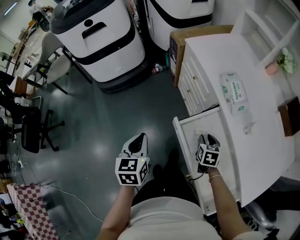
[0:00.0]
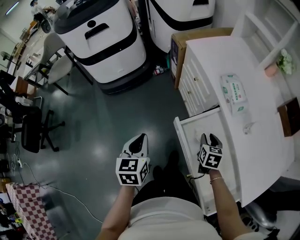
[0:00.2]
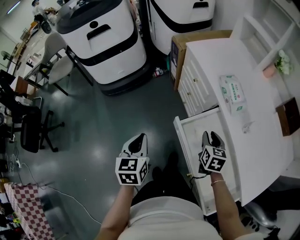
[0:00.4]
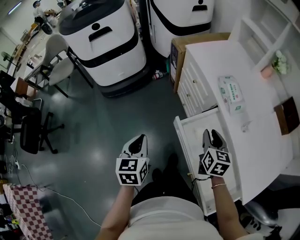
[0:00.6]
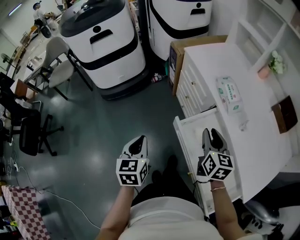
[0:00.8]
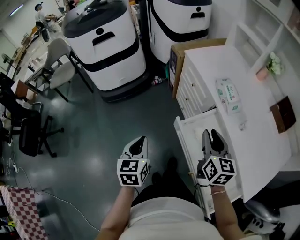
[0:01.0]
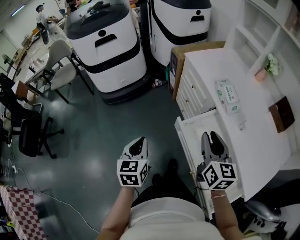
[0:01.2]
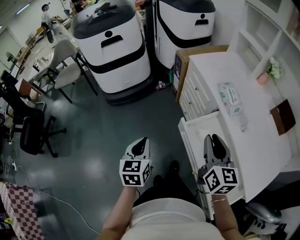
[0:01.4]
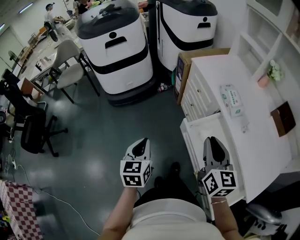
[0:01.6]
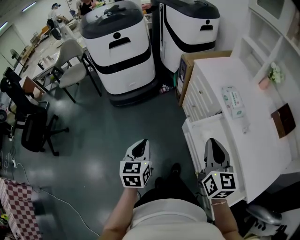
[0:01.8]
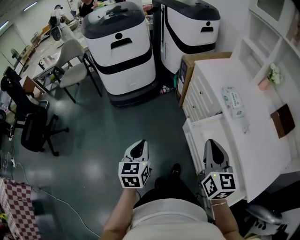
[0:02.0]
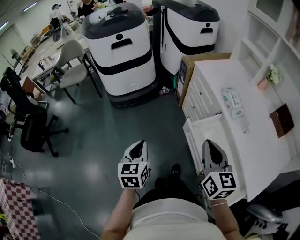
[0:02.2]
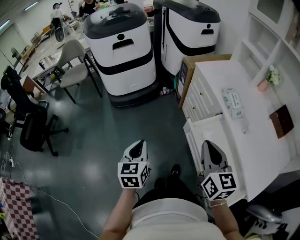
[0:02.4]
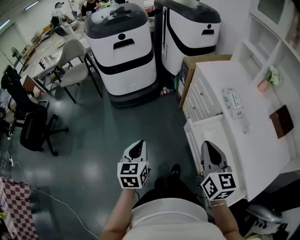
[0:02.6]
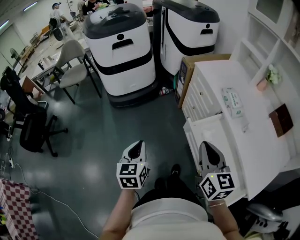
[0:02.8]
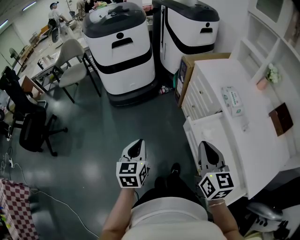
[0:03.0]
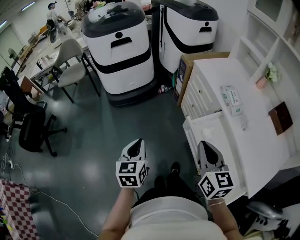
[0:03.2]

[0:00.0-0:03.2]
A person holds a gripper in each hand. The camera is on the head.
0.0 to 1.6 s: The left gripper shifts some 5 cm backward. The right gripper moves upward, approximately 30 cm, and tips its fingers upward by some 40 degrees.
1.6 to 3.2 s: Both grippers move to the left, about 5 cm.

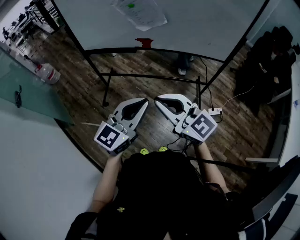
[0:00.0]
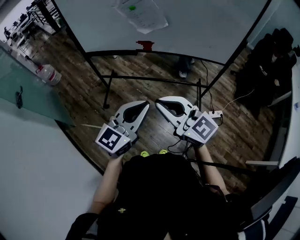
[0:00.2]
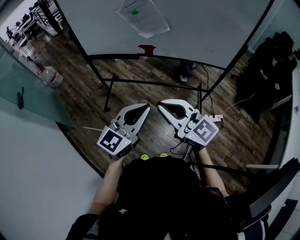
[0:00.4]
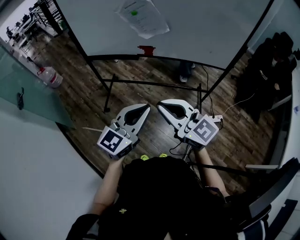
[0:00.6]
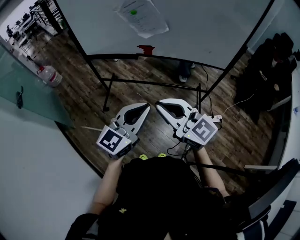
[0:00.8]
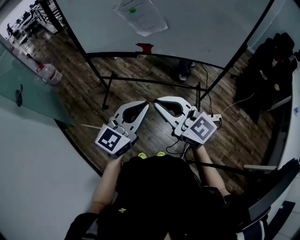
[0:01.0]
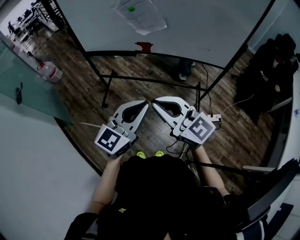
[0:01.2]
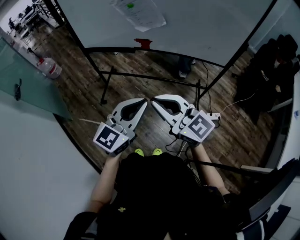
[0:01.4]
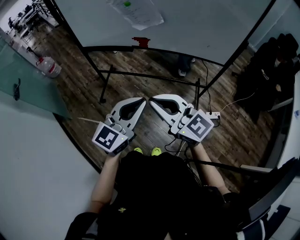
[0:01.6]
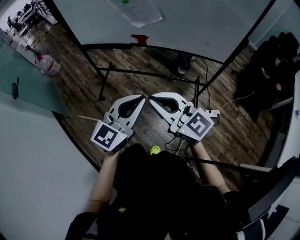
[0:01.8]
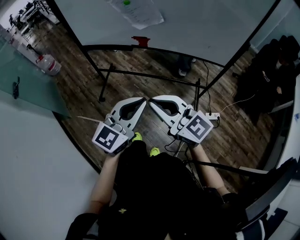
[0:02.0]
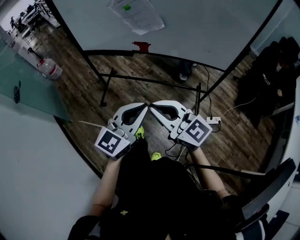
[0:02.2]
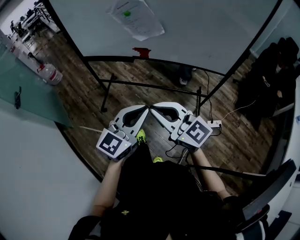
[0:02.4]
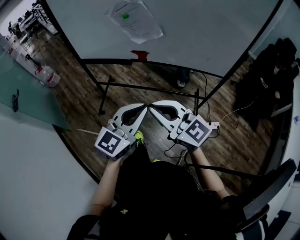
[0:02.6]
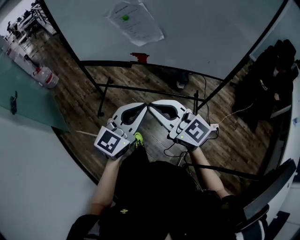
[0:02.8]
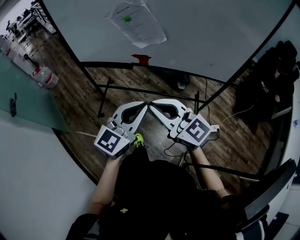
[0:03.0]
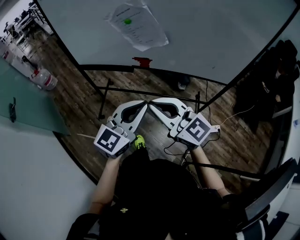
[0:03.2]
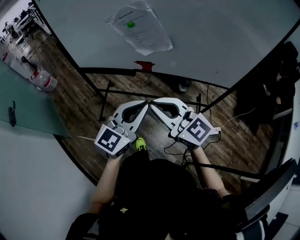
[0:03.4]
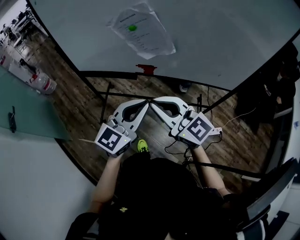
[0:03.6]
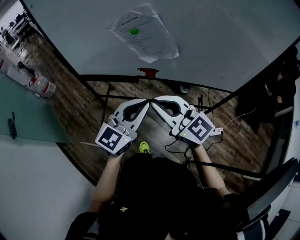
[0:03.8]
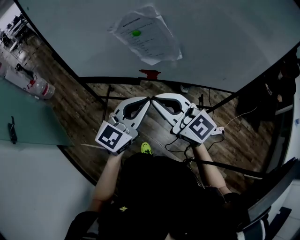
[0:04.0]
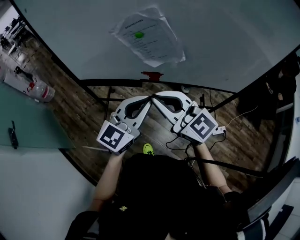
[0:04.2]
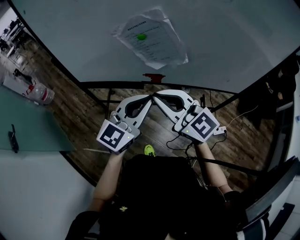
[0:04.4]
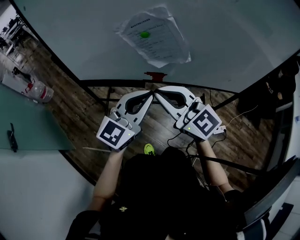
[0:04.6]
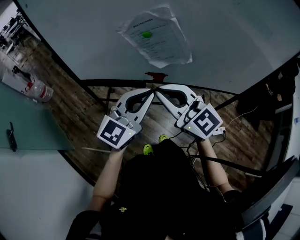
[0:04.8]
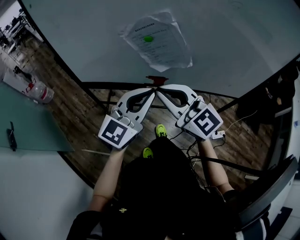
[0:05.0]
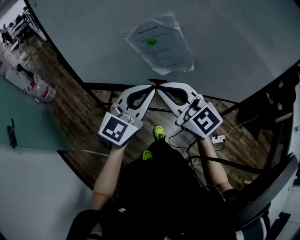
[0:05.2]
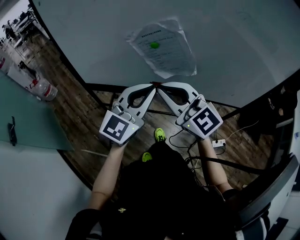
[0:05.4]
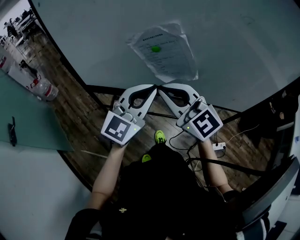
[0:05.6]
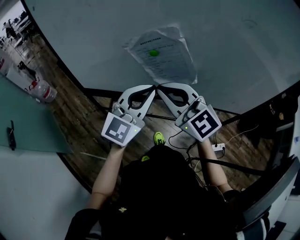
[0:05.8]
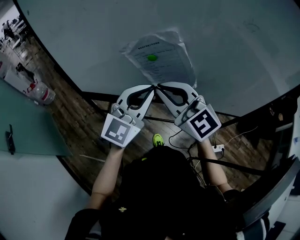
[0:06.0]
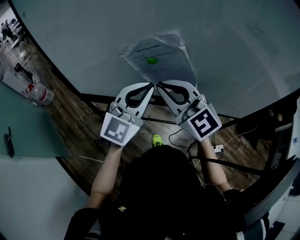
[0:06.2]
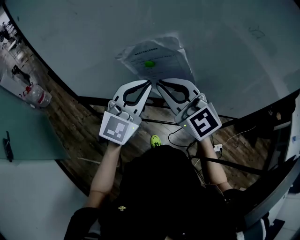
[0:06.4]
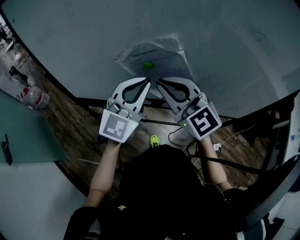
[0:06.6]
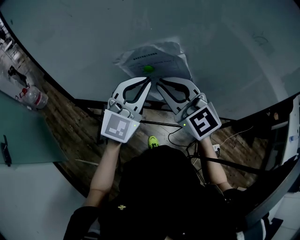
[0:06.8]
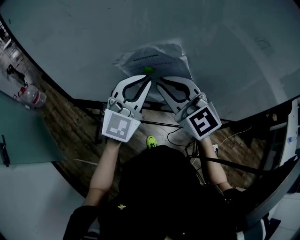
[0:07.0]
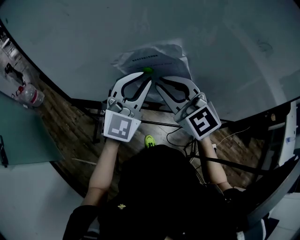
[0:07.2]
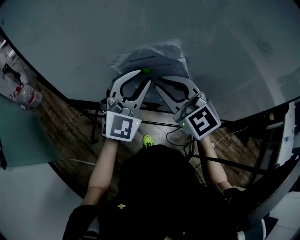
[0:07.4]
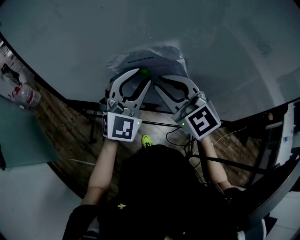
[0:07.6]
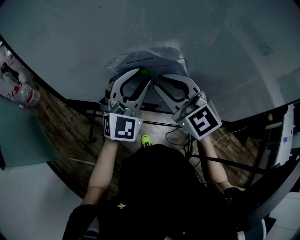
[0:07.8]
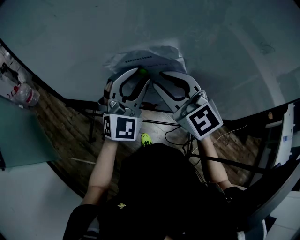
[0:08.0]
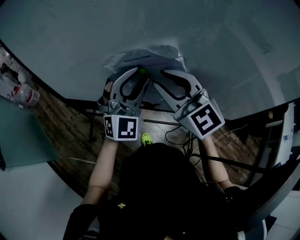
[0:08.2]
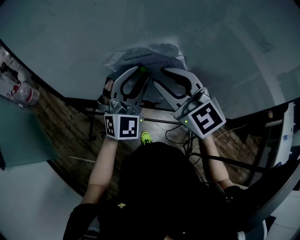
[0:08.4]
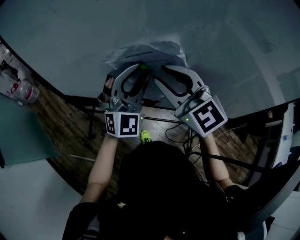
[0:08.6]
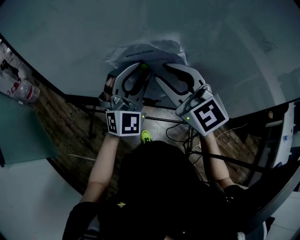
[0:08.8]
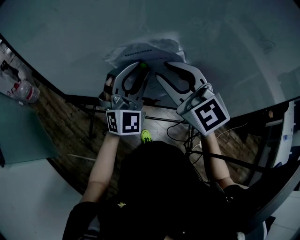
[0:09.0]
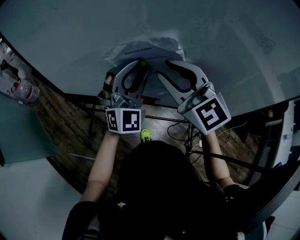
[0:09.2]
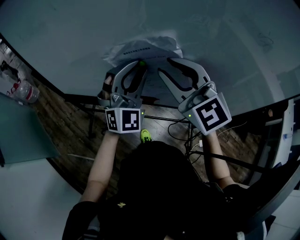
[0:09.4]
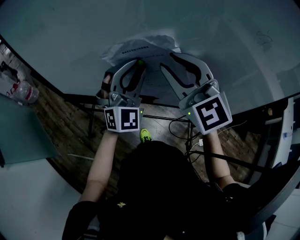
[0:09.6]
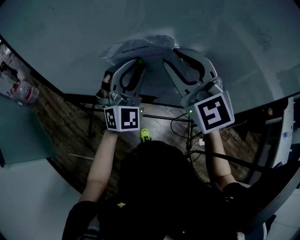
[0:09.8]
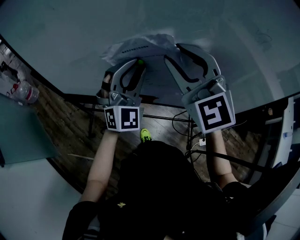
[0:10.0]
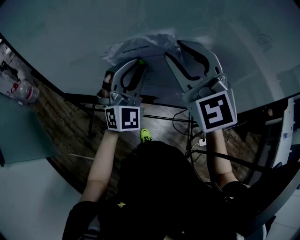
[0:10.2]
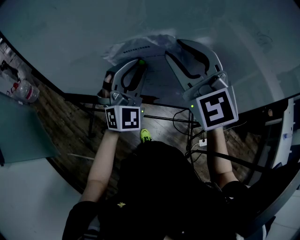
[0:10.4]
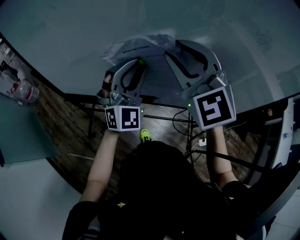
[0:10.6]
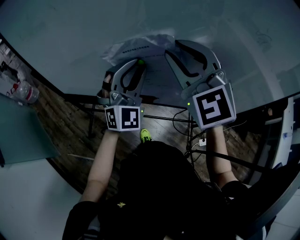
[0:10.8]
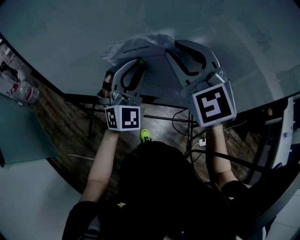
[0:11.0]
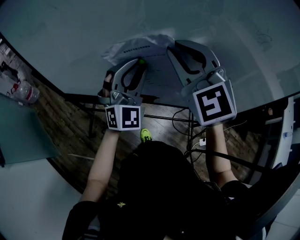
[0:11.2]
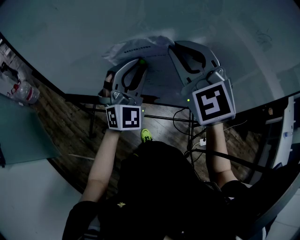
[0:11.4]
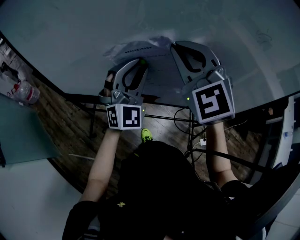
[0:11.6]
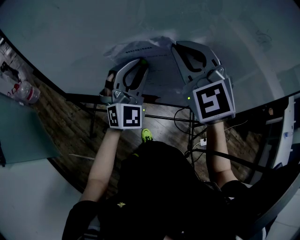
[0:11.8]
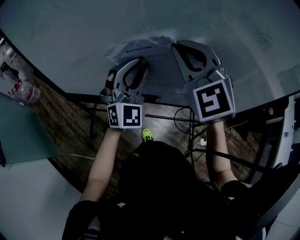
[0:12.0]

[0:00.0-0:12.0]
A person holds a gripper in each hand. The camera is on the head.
0.0 to 1.6 s: The grippers make only small movements.
1.6 to 3.0 s: Both grippers move forward, approximately 10 cm.
3.0 to 4.4 s: The two grippers go about 20 cm forward.
4.4 to 6.0 s: The grippers both shift forward by some 10 cm.
6.0 to 7.6 s: Both grippers move forward, roughly 10 cm. The left gripper swivels some 20 degrees, and opens its fingers.
7.6 to 9.0 s: The grippers make only small movements.
9.0 to 10.4 s: The right gripper shifts roughly 5 cm upward.
10.4 to 12.0 s: The right gripper closes its fingers.

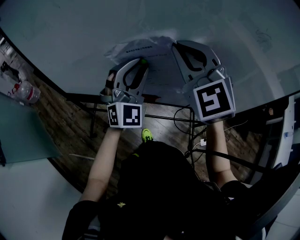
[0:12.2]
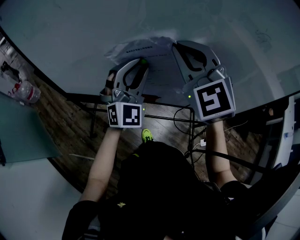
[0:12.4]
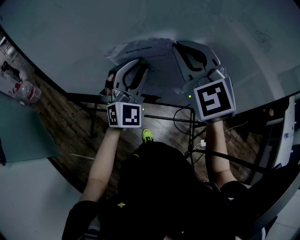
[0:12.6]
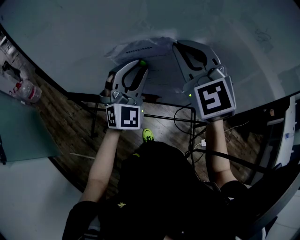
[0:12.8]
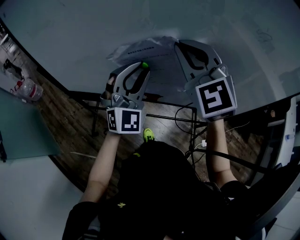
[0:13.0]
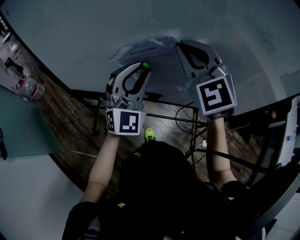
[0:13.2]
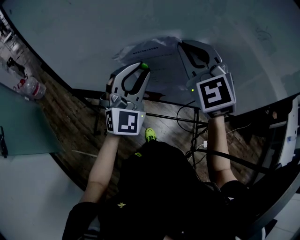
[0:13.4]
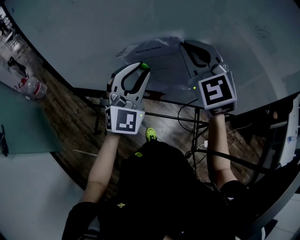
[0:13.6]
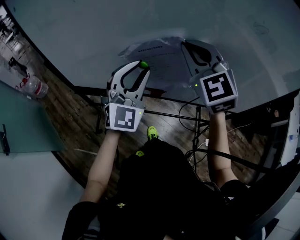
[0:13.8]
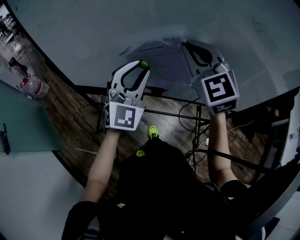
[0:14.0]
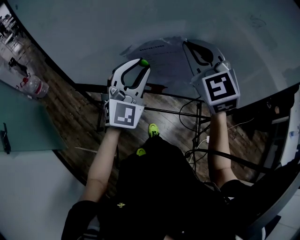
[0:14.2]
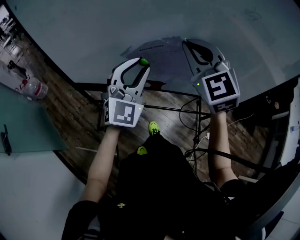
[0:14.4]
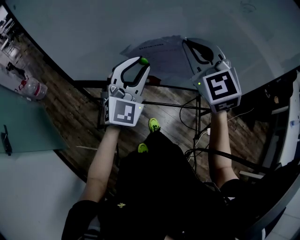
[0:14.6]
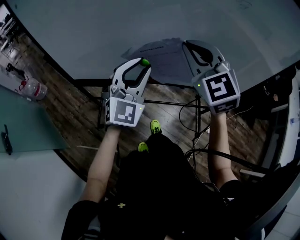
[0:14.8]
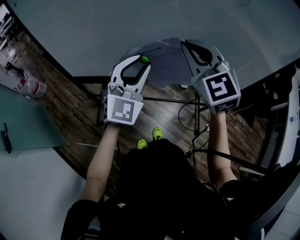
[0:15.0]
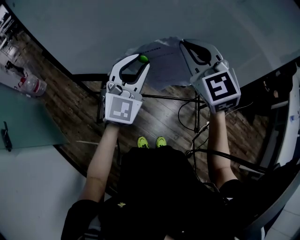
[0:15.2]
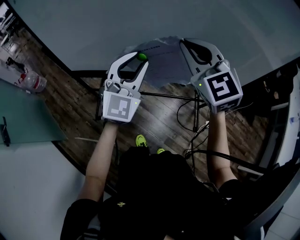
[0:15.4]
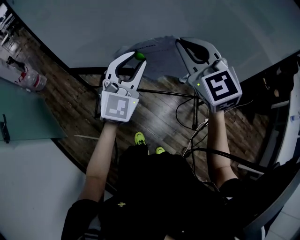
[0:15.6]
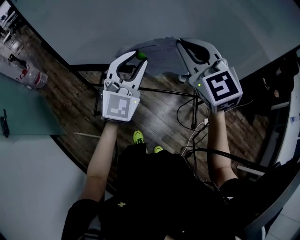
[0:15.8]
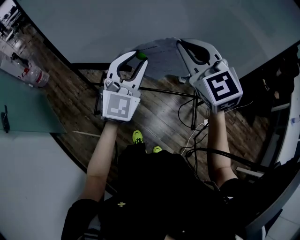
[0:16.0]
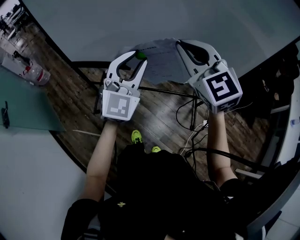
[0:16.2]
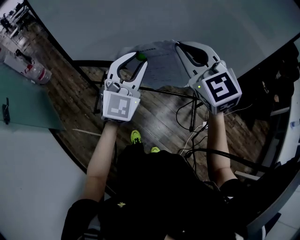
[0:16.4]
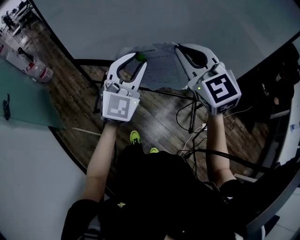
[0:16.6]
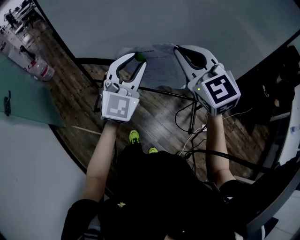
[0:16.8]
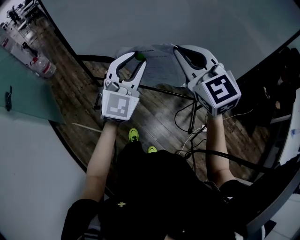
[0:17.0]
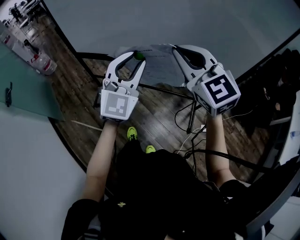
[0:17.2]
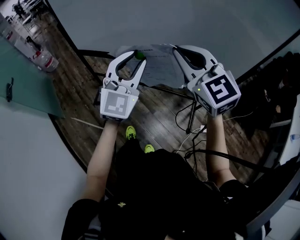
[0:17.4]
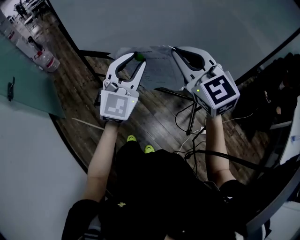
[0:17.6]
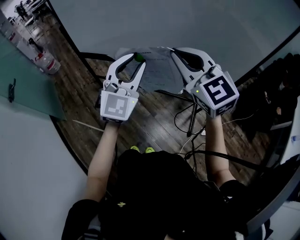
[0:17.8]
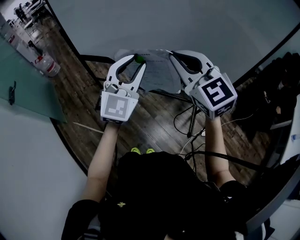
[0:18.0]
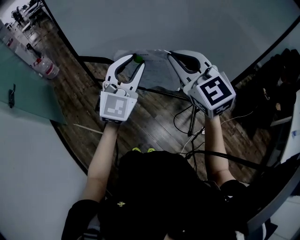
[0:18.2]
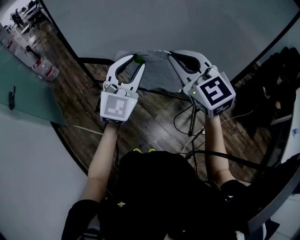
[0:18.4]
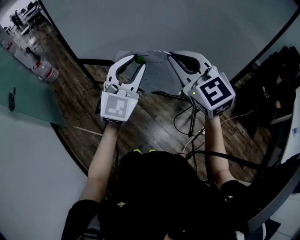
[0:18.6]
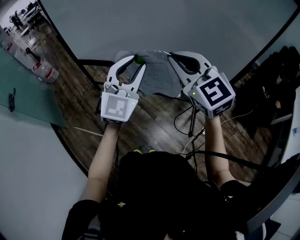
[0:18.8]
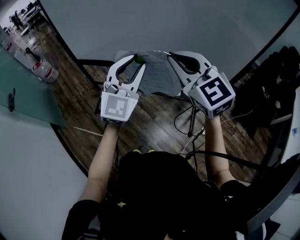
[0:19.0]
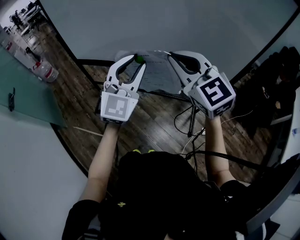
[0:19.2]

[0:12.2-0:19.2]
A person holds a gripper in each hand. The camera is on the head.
12.2 to 13.6 s: The grippers stay close to where they were, moving slightly.
13.6 to 15.0 s: The grippers both shift backward by roughly 10 cm.
15.0 to 16.4 s: Both grippers move backward and to the right, some 10 cm.
16.4 to 17.8 s: The two grippers go some 5 cm backward.
17.8 to 19.2 s: Both grippers stay put.

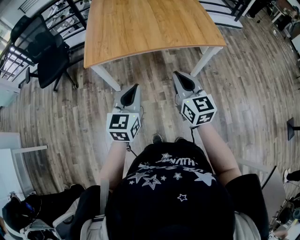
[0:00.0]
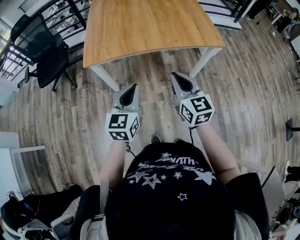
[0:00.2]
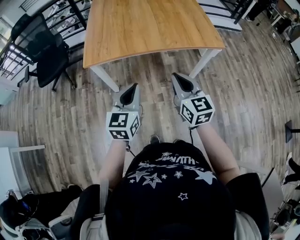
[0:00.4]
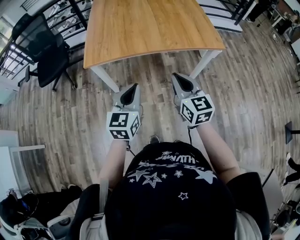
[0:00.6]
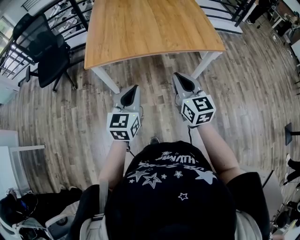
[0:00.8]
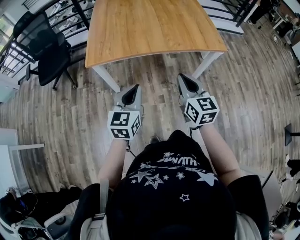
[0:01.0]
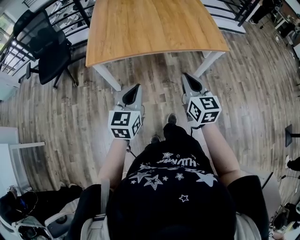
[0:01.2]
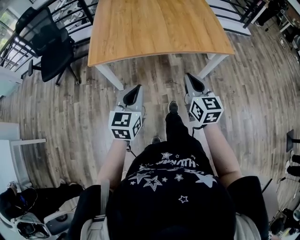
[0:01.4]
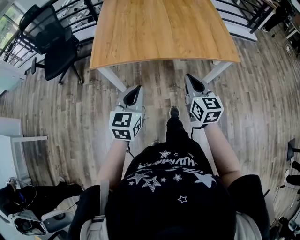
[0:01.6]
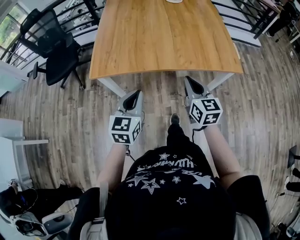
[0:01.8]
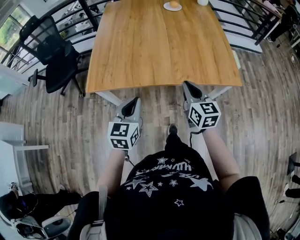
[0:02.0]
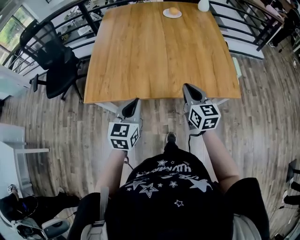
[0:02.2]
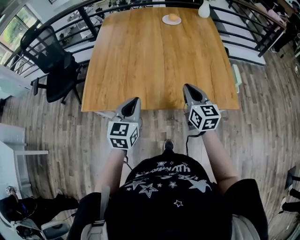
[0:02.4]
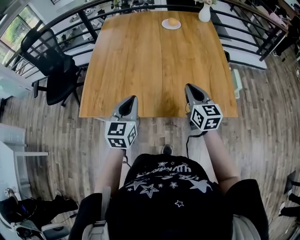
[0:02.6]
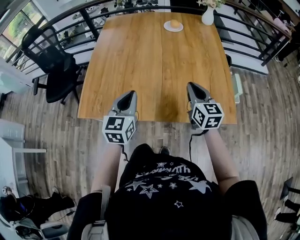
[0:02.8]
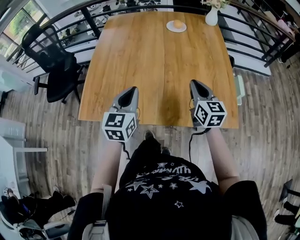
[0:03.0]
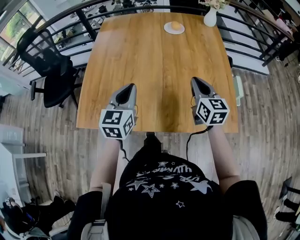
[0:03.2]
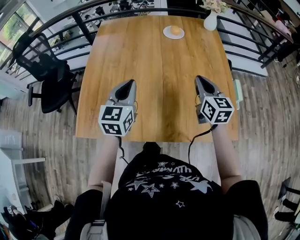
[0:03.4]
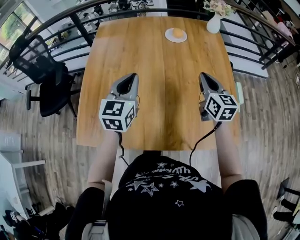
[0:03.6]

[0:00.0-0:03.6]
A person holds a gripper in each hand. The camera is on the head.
0.0 to 1.8 s: Both grippers travel together forward, roughly 15 cm.
1.8 to 3.6 s: The pair of grippers is taken forward, about 50 cm.
